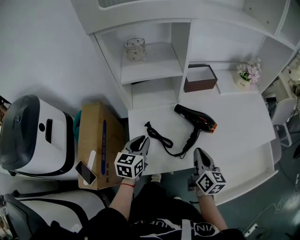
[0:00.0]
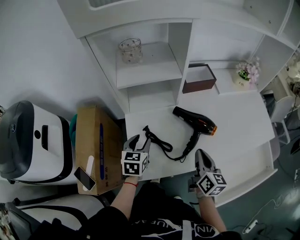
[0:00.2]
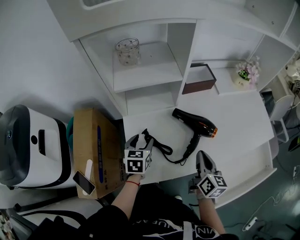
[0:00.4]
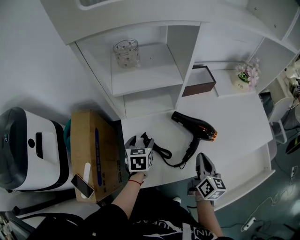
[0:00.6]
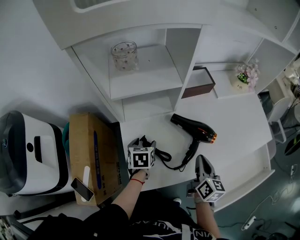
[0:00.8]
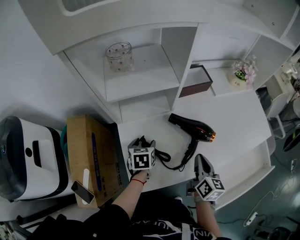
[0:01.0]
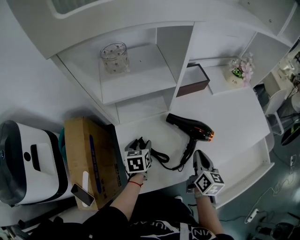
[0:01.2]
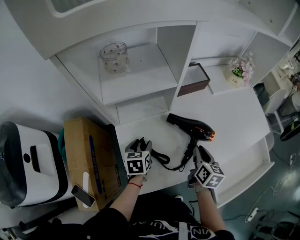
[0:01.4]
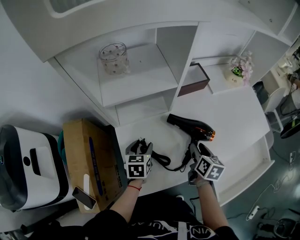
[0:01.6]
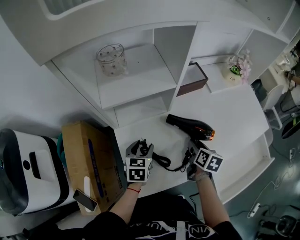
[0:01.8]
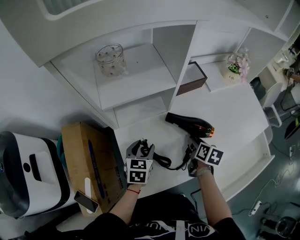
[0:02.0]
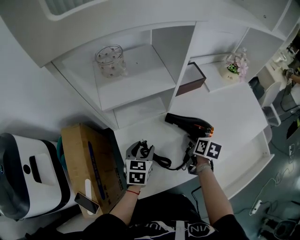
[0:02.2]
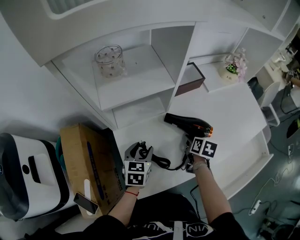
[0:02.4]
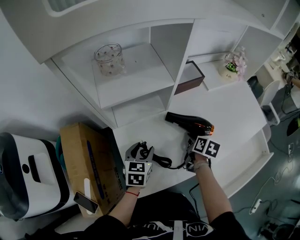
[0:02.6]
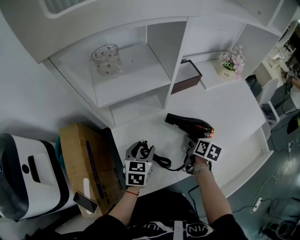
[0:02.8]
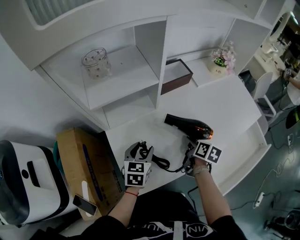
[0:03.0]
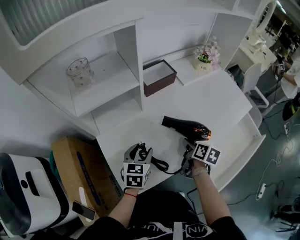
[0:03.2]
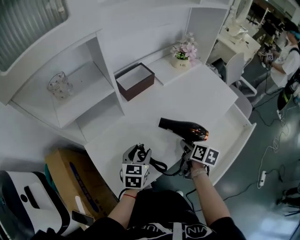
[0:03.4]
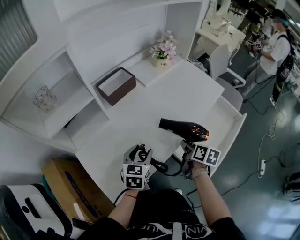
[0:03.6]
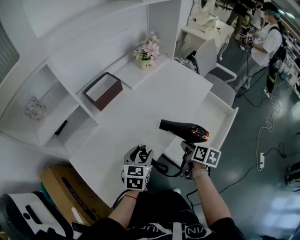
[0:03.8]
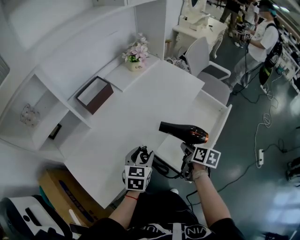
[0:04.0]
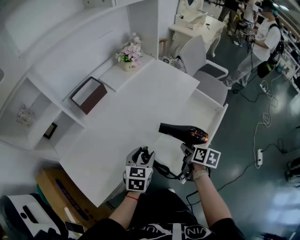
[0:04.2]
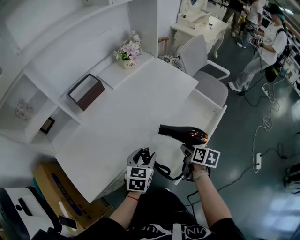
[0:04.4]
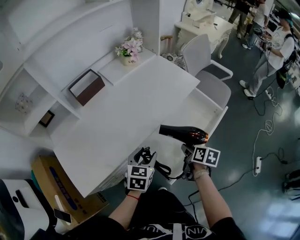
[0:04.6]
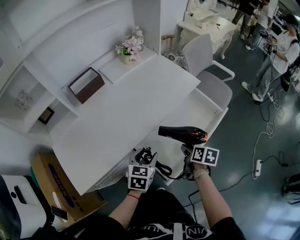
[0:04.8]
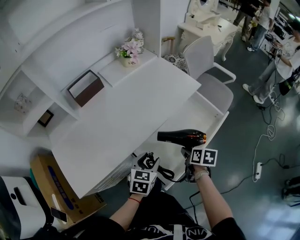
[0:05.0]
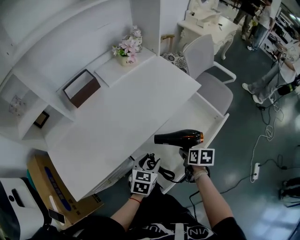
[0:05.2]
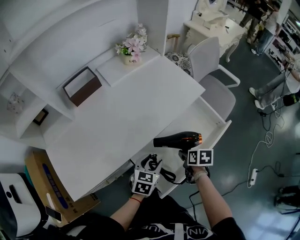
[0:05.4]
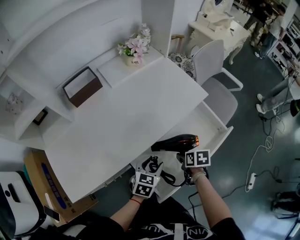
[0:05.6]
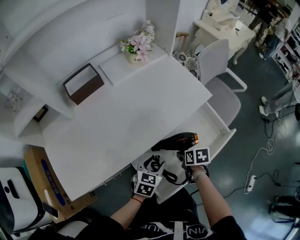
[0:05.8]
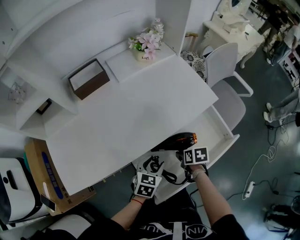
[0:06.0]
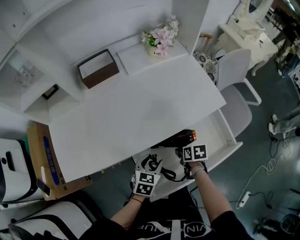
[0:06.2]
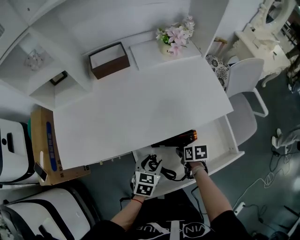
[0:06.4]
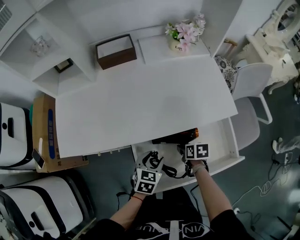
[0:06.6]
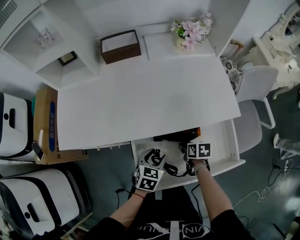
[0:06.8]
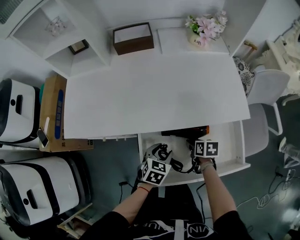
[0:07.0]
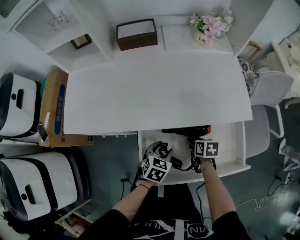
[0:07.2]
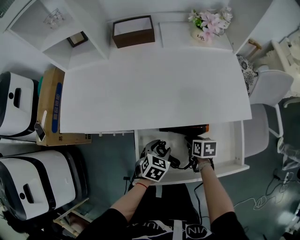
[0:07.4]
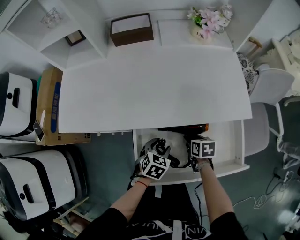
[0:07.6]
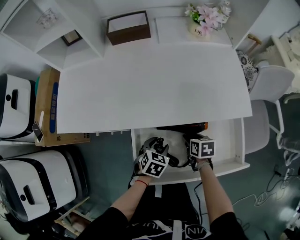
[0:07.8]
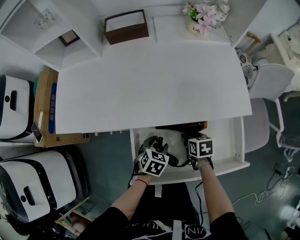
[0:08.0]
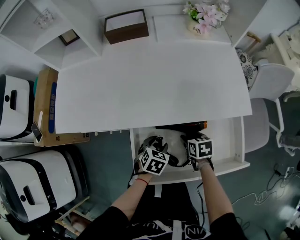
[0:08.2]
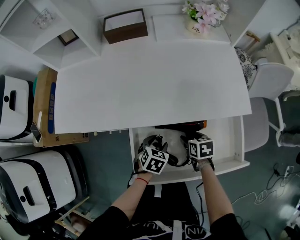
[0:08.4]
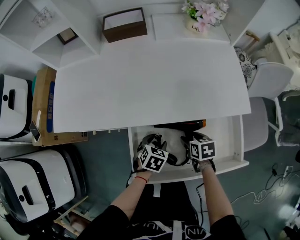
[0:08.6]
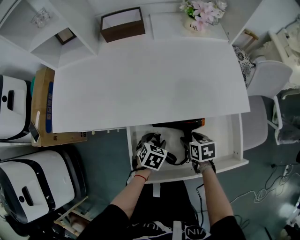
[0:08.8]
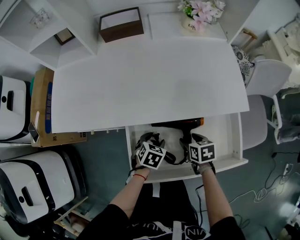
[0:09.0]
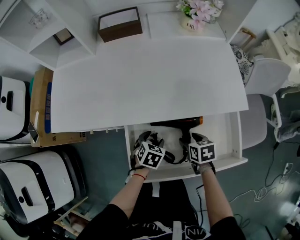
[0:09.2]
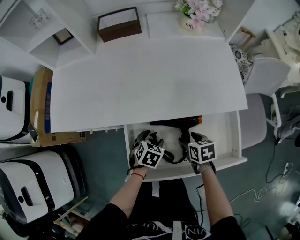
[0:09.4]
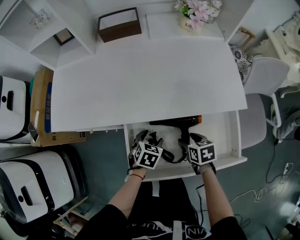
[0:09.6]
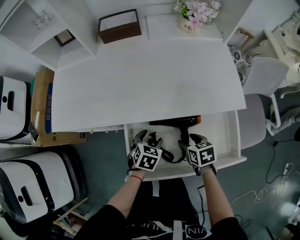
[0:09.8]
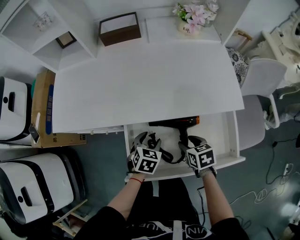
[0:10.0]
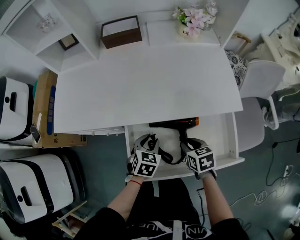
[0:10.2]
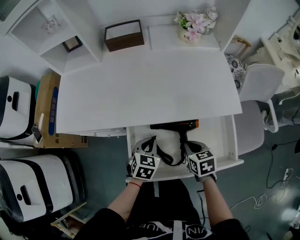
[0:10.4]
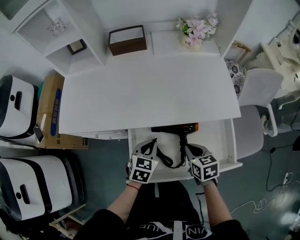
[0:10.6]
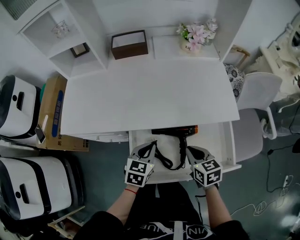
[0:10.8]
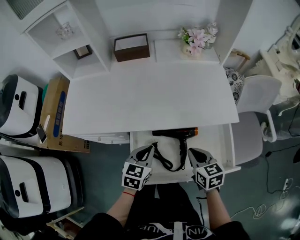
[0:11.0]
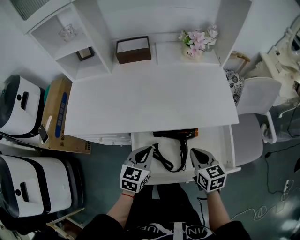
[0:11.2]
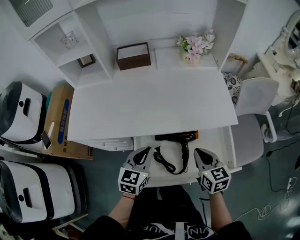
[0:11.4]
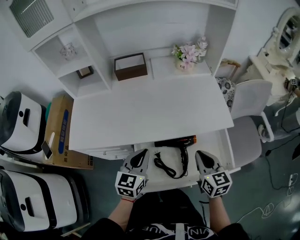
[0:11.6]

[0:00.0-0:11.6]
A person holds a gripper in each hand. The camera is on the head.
0:00.0 to 0:01.4: The two grippers go about 10 cm forward and downward. The right gripper turns by about 20 degrees. The left gripper opens up.
0:01.4 to 0:02.8: The right gripper shifts approximately 5 cm downward, swivels about 20 degrees, and opens.
0:02.8 to 0:04.4: The pair of grippers is taken to the right, roughly 40 cm. The right gripper turns by some 20 degrees. Meanwhile the left gripper changes its angle by some 30 degrees.
0:04.4 to 0:05.8: The right gripper heads forward and downward, covering about 10 cm, and swivels about 40 degrees. The left gripper heads to the right, downward and forward, covering approximately 15 cm.
0:05.8 to 0:07.2: The grippers both shift downward by about 5 cm. The right gripper changes its angle by roughly 30 degrees; the left gripper turns by some 30 degrees.
0:07.2 to 0:08.8: The left gripper moves downward, about 5 cm.
0:08.8 to 0:10.2: The grippers both shift upward by about 5 cm. The right gripper closes up.
0:10.2 to 0:11.6: Both grippers travel together upward, approximately 20 cm. The right gripper angles its fingers upward, by approximately 30 degrees, and closes its fingers. The left gripper tips its fingers upward by about 30 degrees, and closes up.

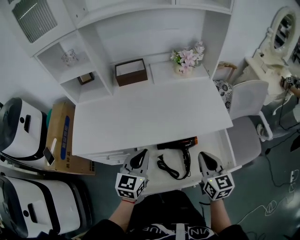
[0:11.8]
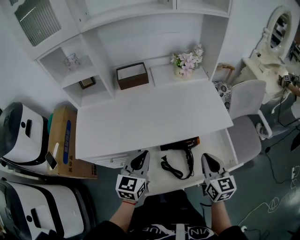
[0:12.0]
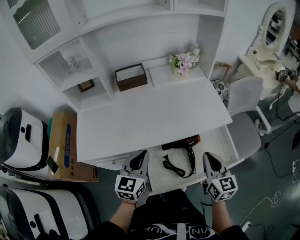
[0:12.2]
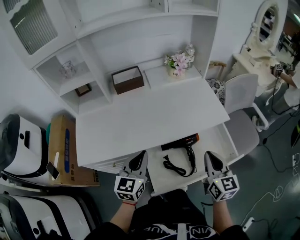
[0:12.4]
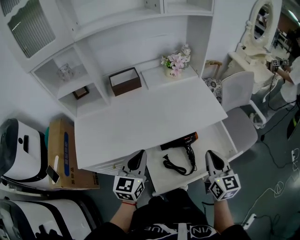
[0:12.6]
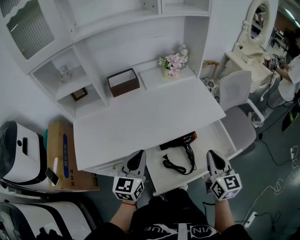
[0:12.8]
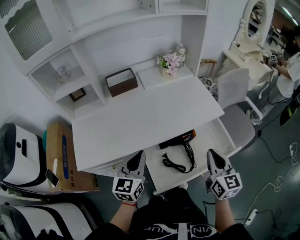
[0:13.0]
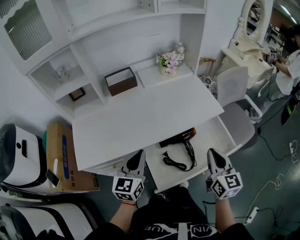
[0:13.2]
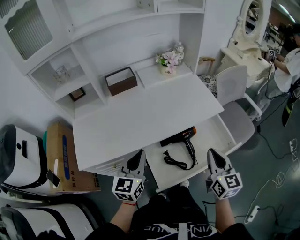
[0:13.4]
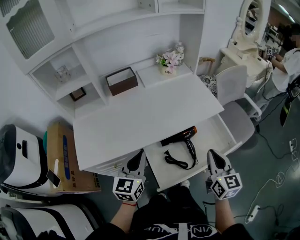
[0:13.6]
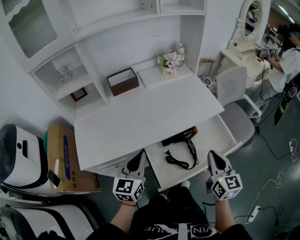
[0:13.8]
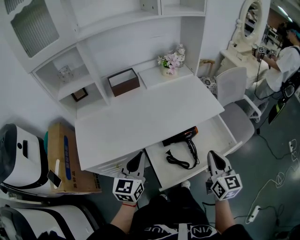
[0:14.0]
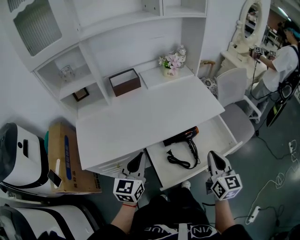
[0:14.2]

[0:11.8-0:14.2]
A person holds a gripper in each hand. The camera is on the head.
0:11.8 to 0:13.0: The left gripper shifts by about 5 cm. The right gripper is displaced backward and upward by roughly 10 cm.
0:13.0 to 0:14.2: The grippers move only a little.

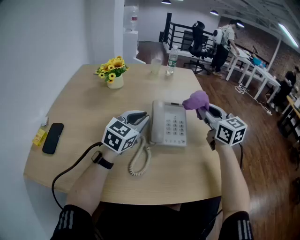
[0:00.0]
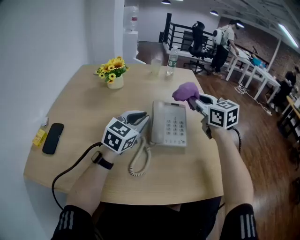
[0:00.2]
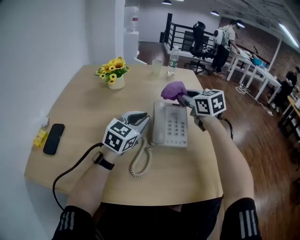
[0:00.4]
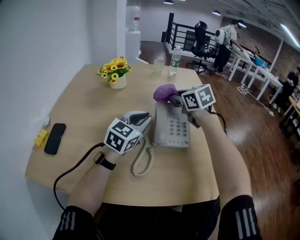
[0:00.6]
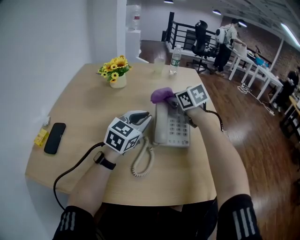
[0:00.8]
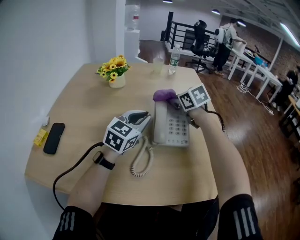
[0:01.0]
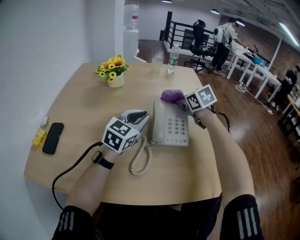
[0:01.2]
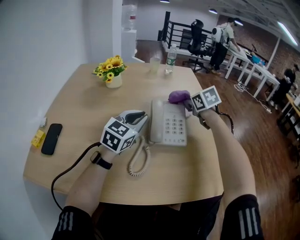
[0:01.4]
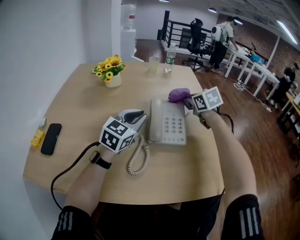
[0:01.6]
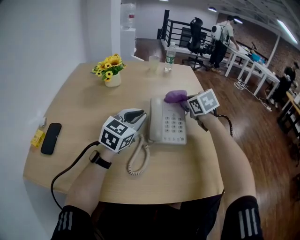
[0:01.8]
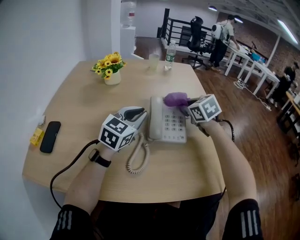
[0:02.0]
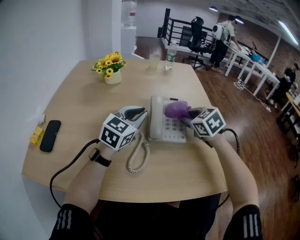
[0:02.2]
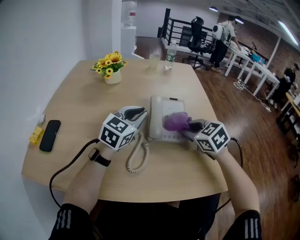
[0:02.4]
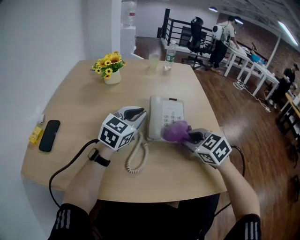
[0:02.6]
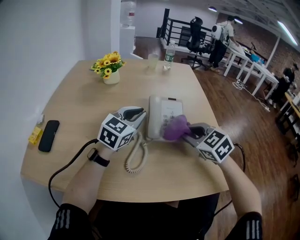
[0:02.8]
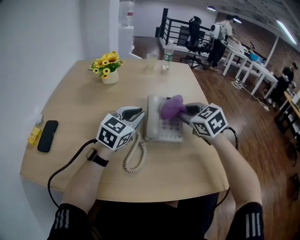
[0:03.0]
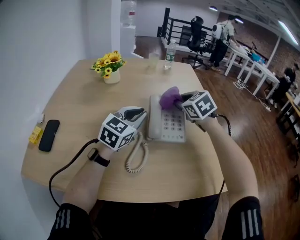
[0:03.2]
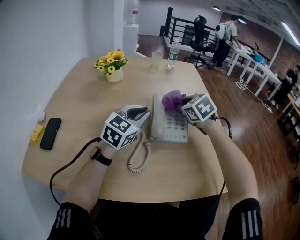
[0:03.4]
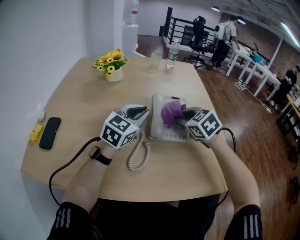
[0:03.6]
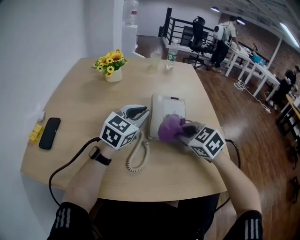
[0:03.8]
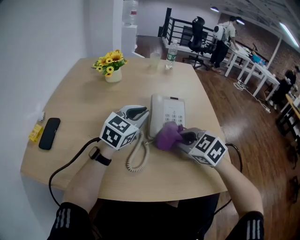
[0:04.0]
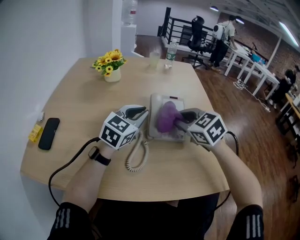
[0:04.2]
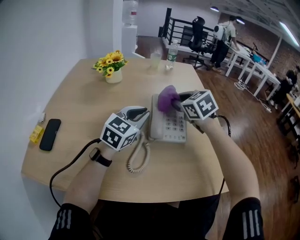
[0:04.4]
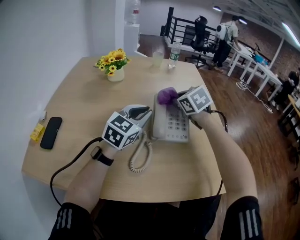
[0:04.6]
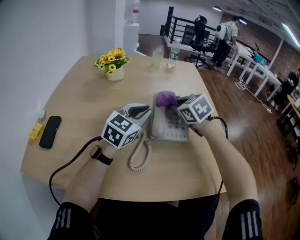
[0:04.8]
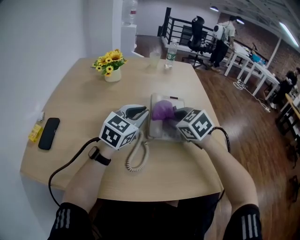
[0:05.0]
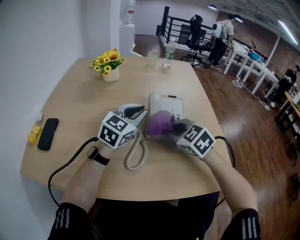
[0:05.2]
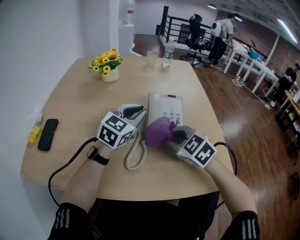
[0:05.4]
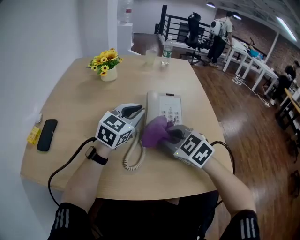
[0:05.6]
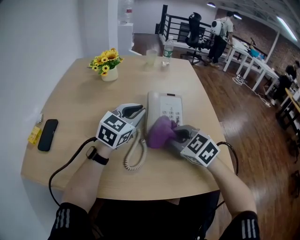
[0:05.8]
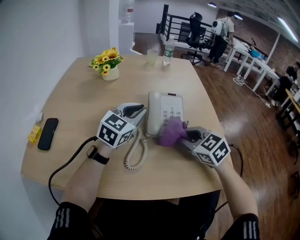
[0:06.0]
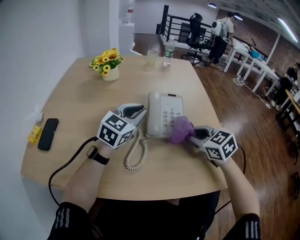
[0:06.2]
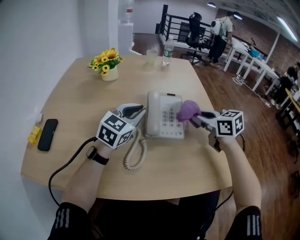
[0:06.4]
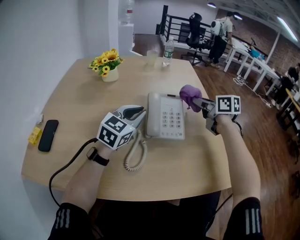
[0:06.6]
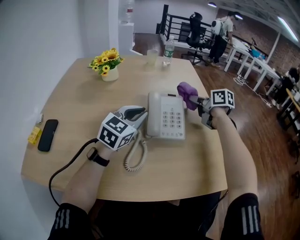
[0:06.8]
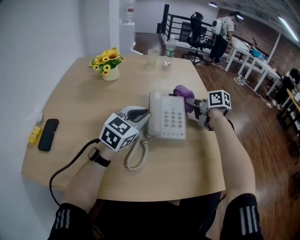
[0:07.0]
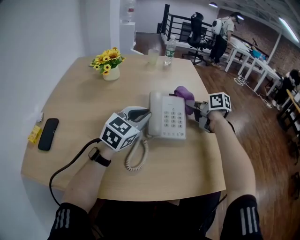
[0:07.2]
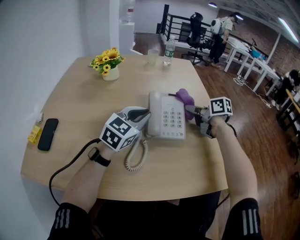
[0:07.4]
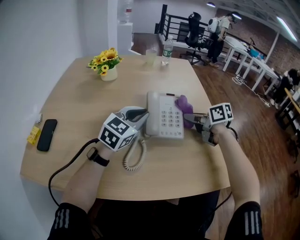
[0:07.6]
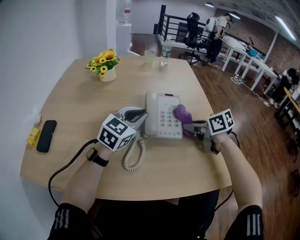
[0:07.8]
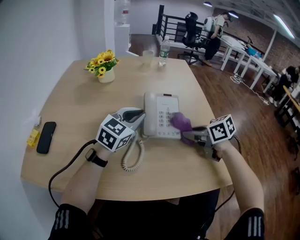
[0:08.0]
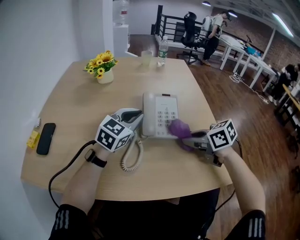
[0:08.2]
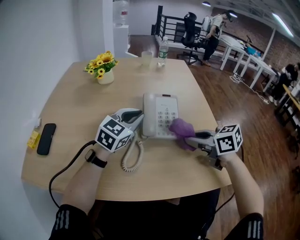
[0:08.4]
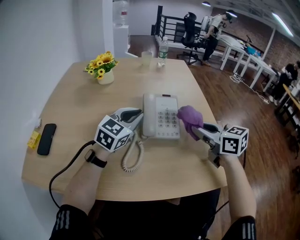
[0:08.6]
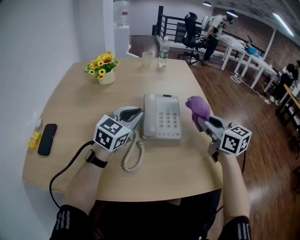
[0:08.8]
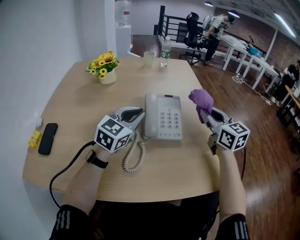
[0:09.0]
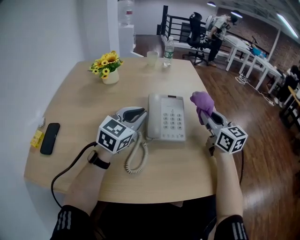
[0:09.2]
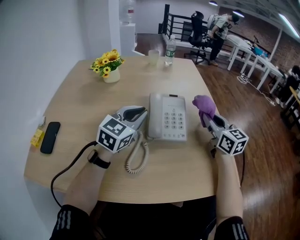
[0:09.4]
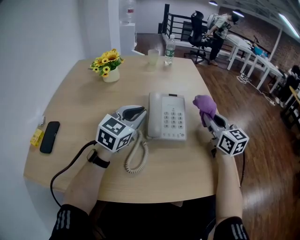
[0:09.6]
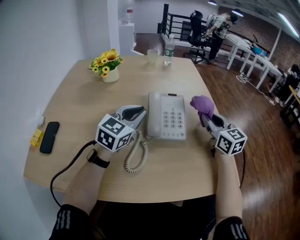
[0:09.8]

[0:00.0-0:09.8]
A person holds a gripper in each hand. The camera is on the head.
0:00.0 to 0:01.4: The right gripper is displaced forward and downward by about 15 cm, travels to the left and back again, some 15 cm each way, and angles its fingers downward, by some 40 degrees.
0:01.4 to 0:02.8: The right gripper goes approximately 20 cm backward, and swivels approximately 20 degrees.
0:02.8 to 0:04.2: The right gripper goes forward and backward, about 15 cm each way, reversing 2 times.
0:04.2 to 0:05.6: The right gripper shifts roughly 5 cm backward.
0:05.6 to 0:07.0: The right gripper heads forward and to the right, covering about 25 cm, and rotates around the line of its fingers by approximately 60 degrees, clockwise from behind.
0:07.0 to 0:08.4: The right gripper shifts approximately 20 cm backward, and swivels roughly 30 degrees.
0:08.4 to 0:09.8: The right gripper moves forward and to the right, roughly 10 cm, and changes its angle by roughly 40 degrees.
